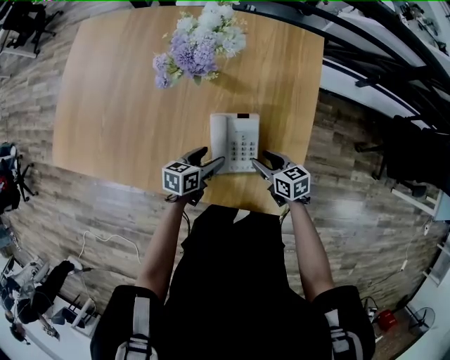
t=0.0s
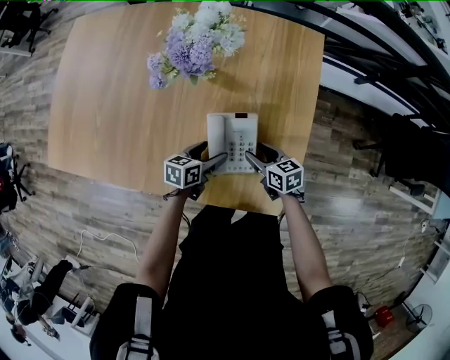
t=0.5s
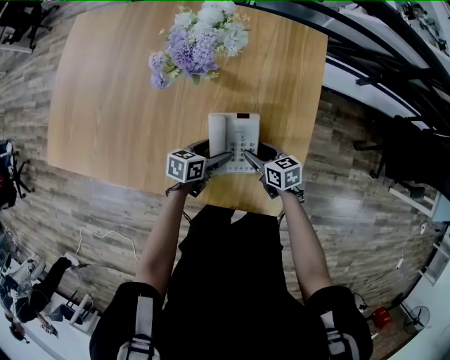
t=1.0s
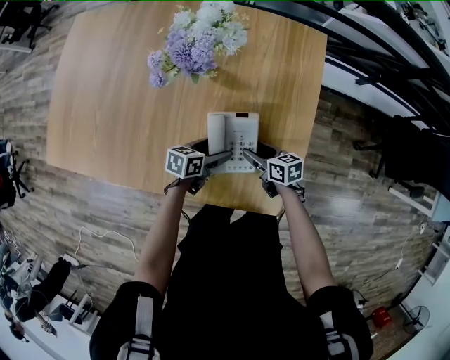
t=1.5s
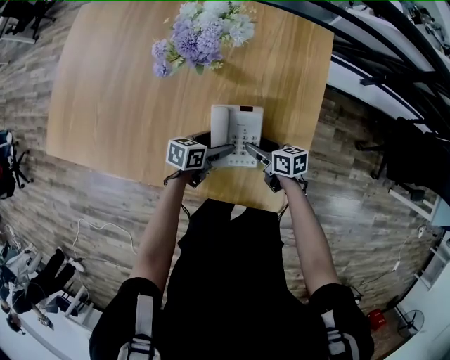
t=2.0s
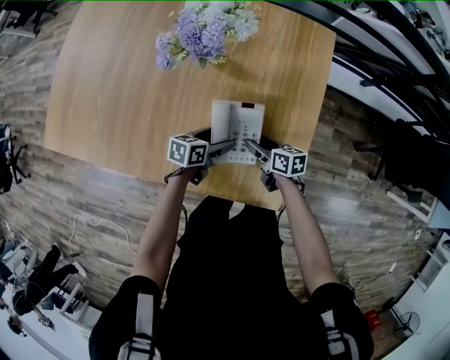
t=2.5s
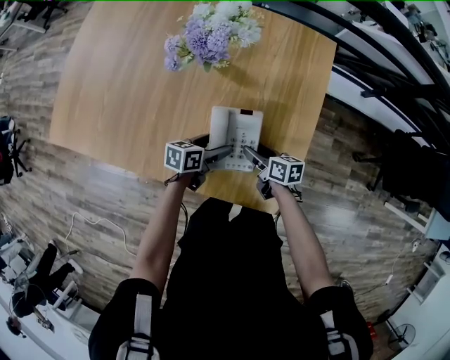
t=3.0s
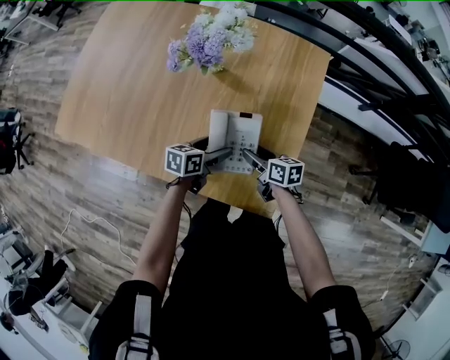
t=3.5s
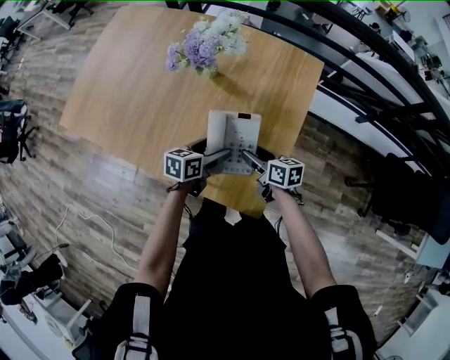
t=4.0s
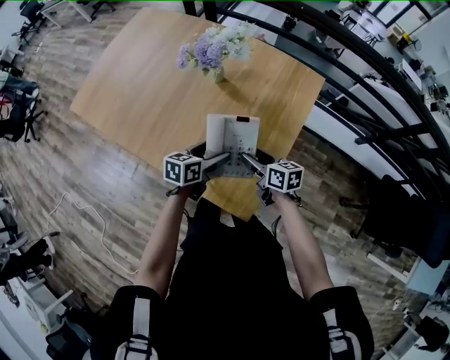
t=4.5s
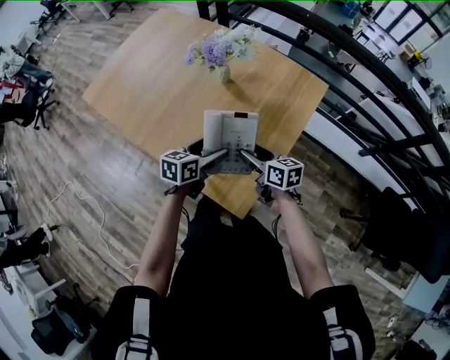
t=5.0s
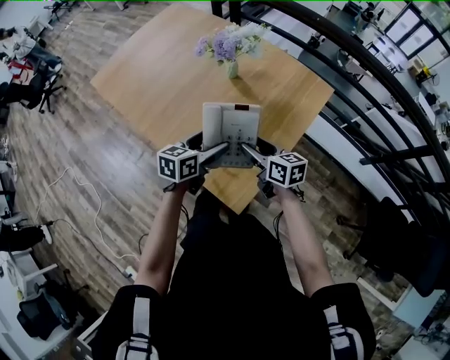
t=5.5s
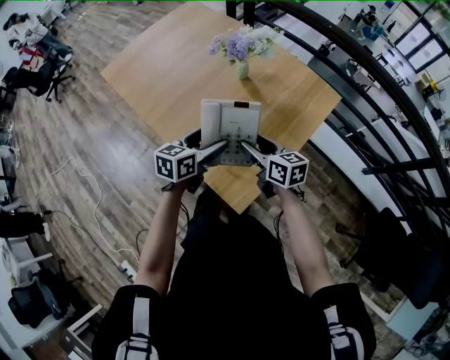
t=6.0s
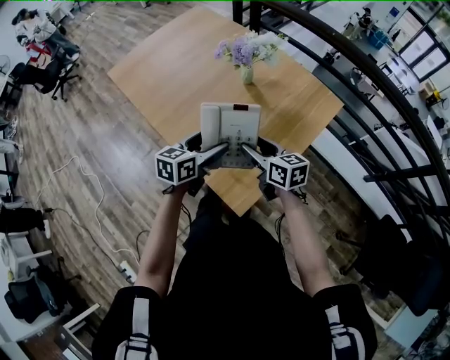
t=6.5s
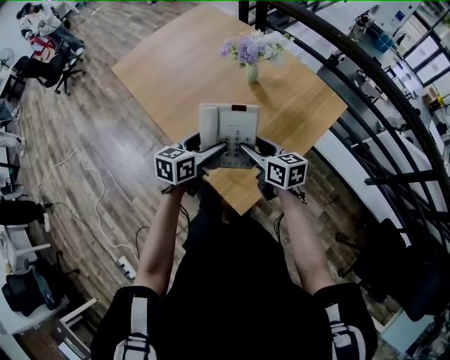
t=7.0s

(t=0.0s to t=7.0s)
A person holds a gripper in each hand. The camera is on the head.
t=0.0s - t=2.0s: The left gripper moves approximately 5 cm. Meanwhile the right gripper shifts by some 5 cm.
t=2.0s - t=3.5s: The two grippers go approximately 5 cm upward.
t=3.5s - t=5.0s: The right gripper heads upward, covering some 10 cm, and swivels approximately 20 degrees. The left gripper goes roughly 15 cm upward and backward, and turns by approximately 20 degrees.
t=5.0s - t=7.0s: The grippers both shift upward by roughly 5 cm.

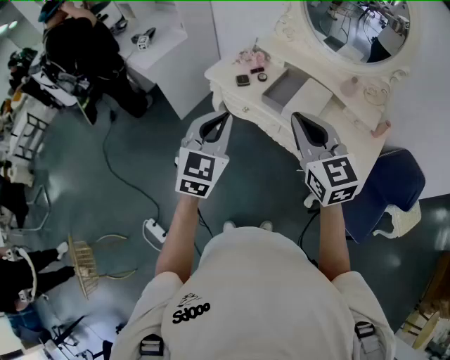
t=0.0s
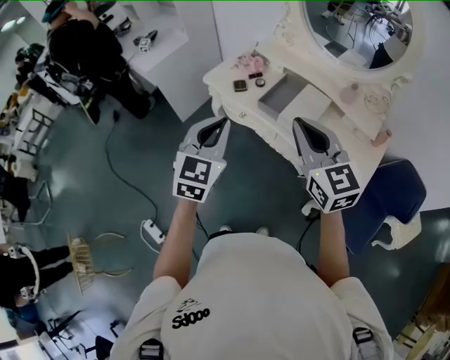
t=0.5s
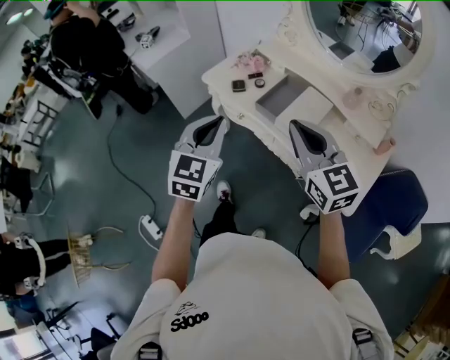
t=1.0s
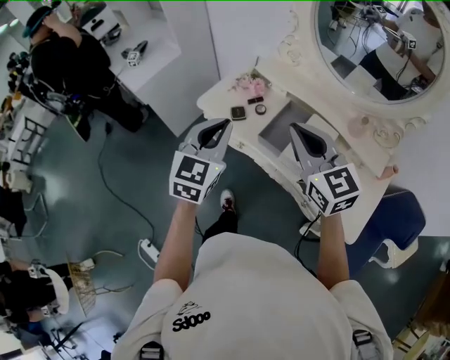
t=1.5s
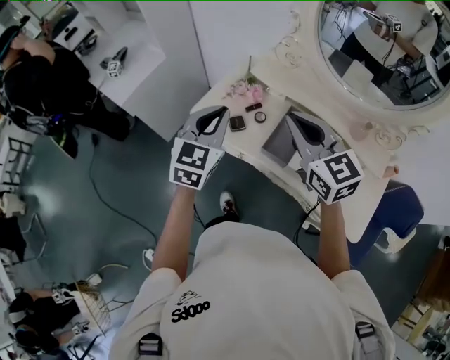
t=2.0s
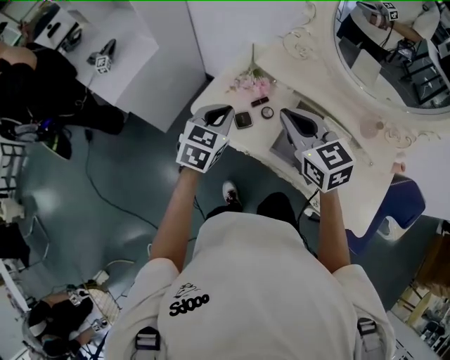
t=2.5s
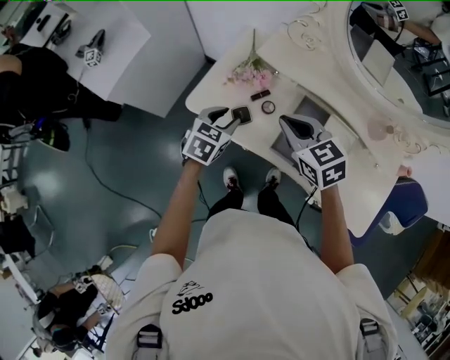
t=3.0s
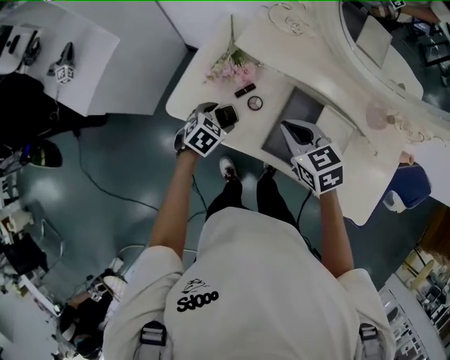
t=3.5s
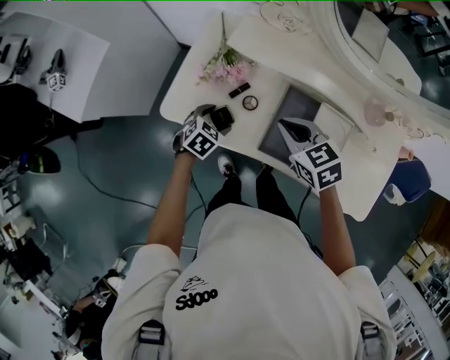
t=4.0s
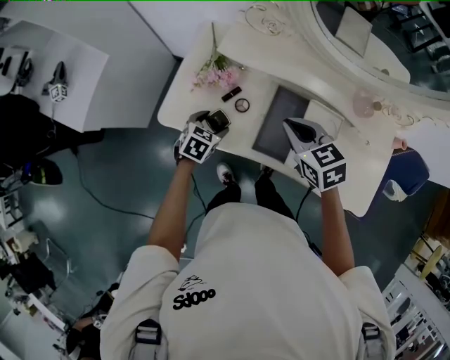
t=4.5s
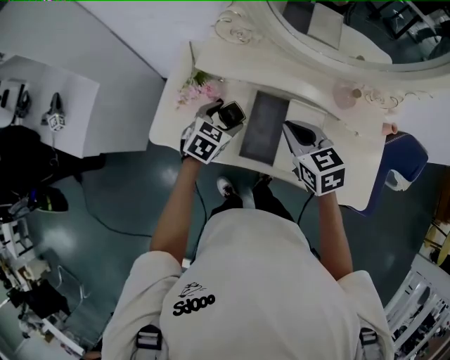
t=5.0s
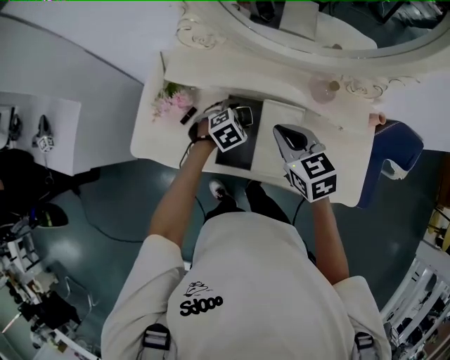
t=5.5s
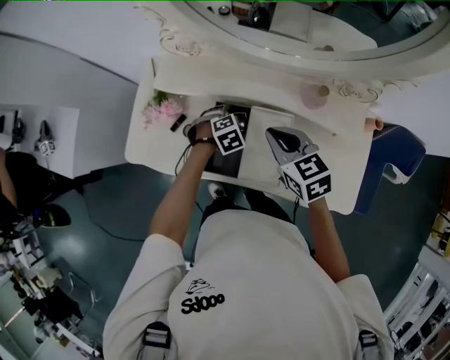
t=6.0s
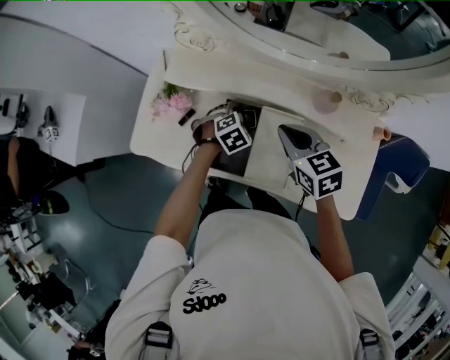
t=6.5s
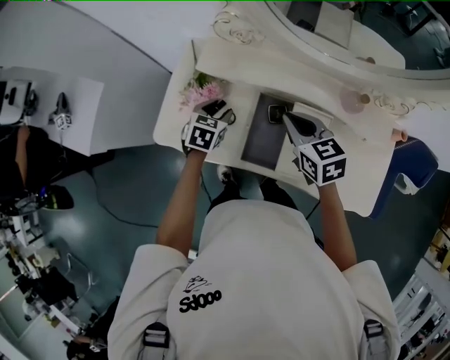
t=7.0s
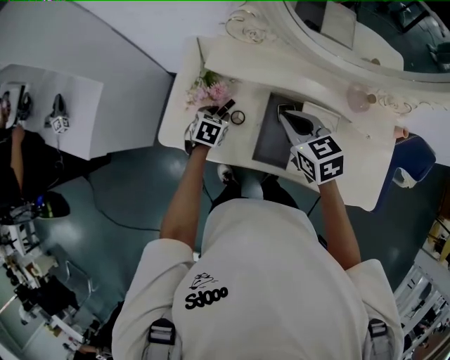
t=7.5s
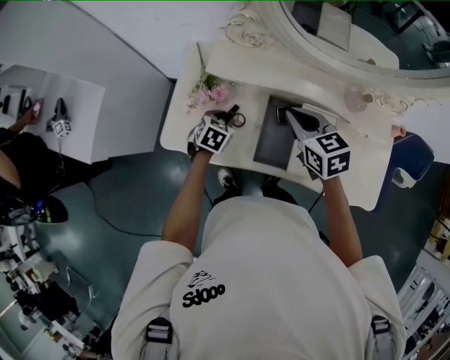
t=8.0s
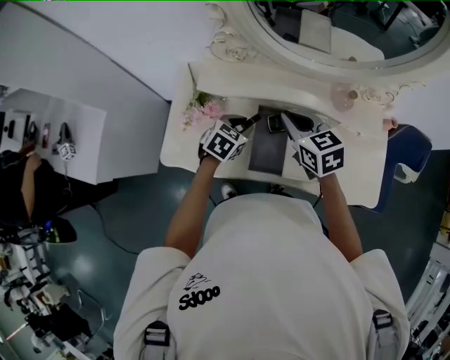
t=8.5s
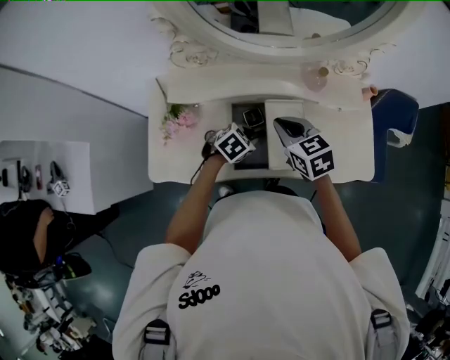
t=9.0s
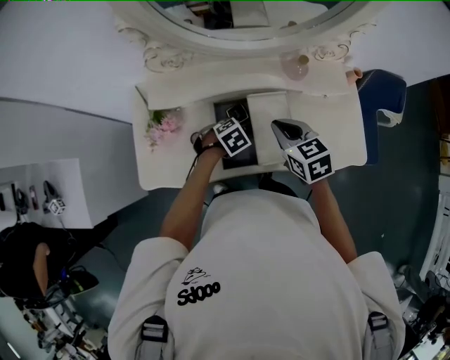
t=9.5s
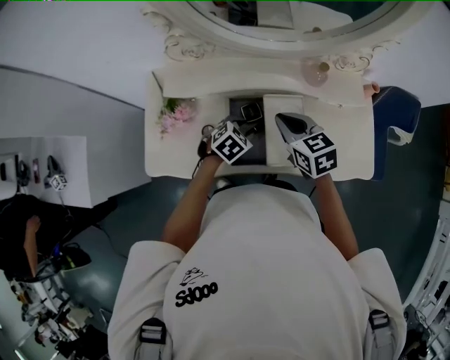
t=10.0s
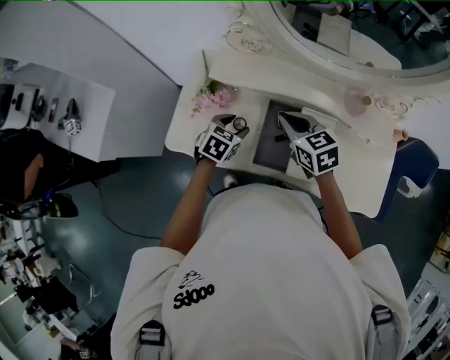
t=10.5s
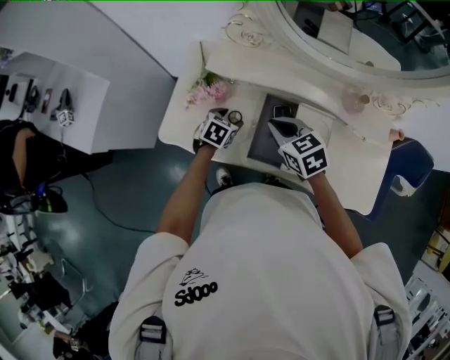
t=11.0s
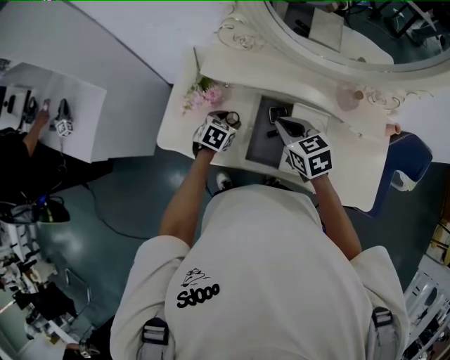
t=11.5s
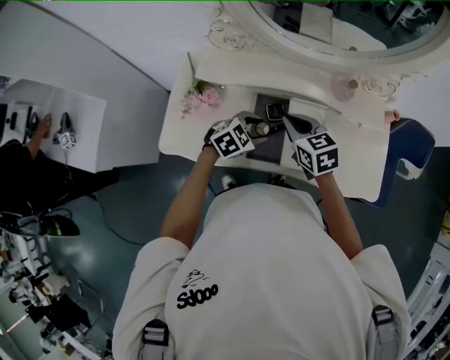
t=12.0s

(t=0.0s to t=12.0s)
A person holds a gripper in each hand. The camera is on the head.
t=0.0s - t=2.0s: Both grippers travel together forward, about 30 cm.
t=2.0s - t=4.0s: The left gripper heads downward, covering roughly 35 cm, points its fingers roughly 40 degrees further downward, and opens up. The right gripper moves downward and forward, some 25 cm, and angles its fingers downward, by approximately 30 degrees.
t=4.0s - t=6.0s: Both grippers move to the right, approximately 20 cm. The left gripper changes its angle by some 40 degrees.
t=6.0s - t=8.0s: The right gripper goes roughly 10 cm to the left, while the left gripper heads to the left, covering some 20 cm, changes its angle by some 40 degrees, and closes its fingers.
t=8.0s - t=10.0s: The left gripper moves up and down over roughly 10 cm, changing direction 2 times, and rotates approximately 30 degrees, while the right gripper changes place by about 10 cm.
t=10.0s - t=12.0s: The left gripper moves approximately 15 cm to the left and comes back.

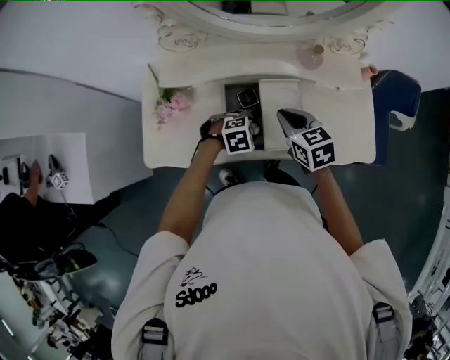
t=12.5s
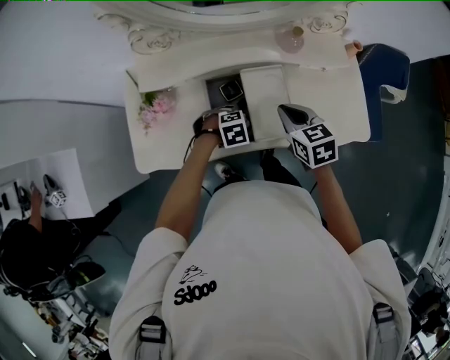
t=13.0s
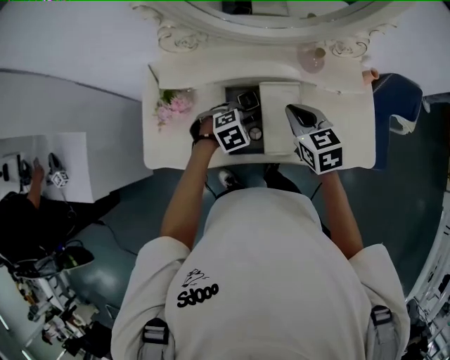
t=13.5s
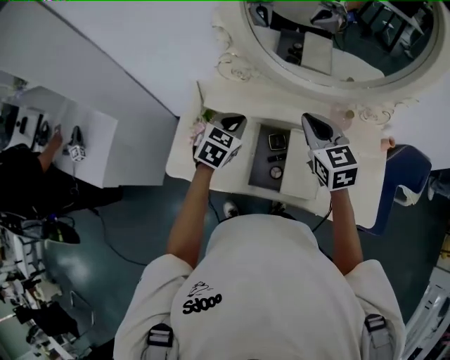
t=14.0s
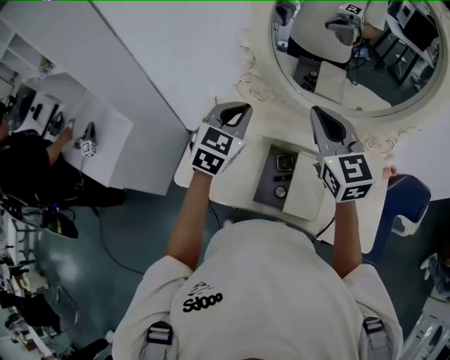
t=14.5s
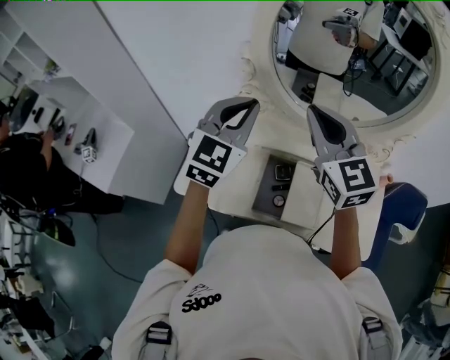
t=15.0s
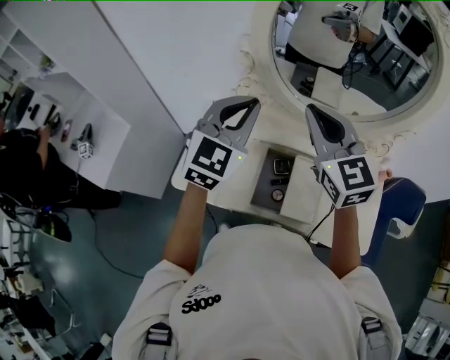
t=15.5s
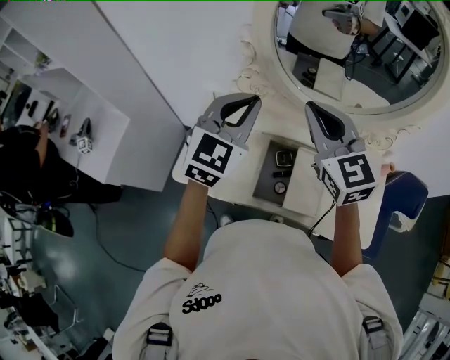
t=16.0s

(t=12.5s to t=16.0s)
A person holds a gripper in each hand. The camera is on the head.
t=12.5s - t=14.5s: Both grippers move upward, approximately 30 cm. The left gripper angles its fingers upward, by about 50 degrees, and closes its fingers; the right gripper points its fingers approximately 30 degrees further upward.
t=14.5s - t=16.0s: The left gripper goes approximately 5 cm upward.

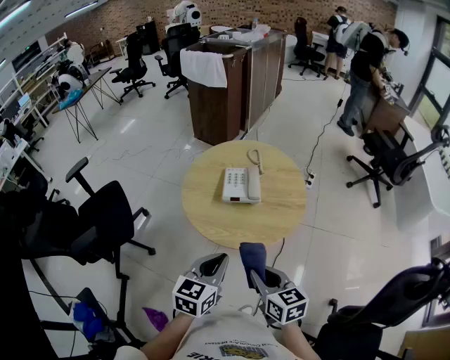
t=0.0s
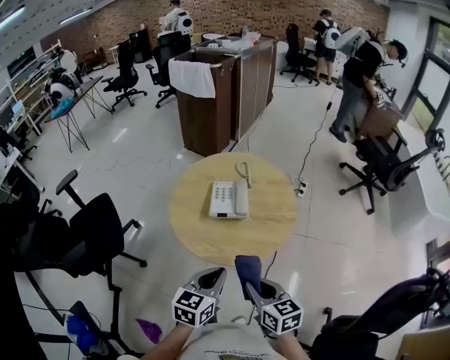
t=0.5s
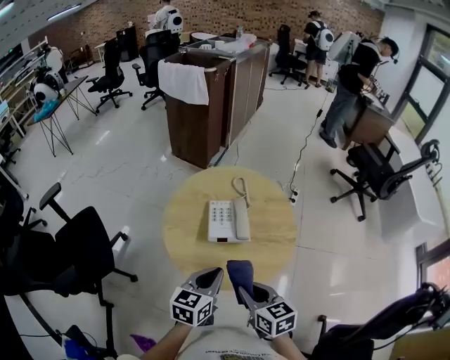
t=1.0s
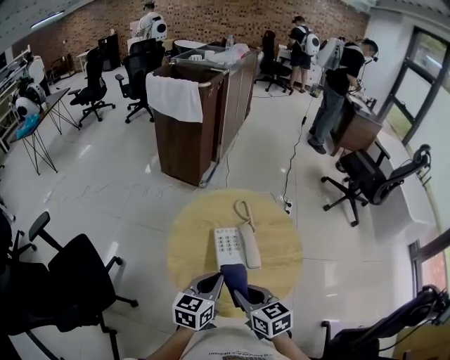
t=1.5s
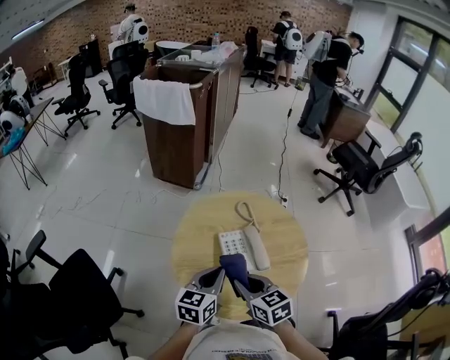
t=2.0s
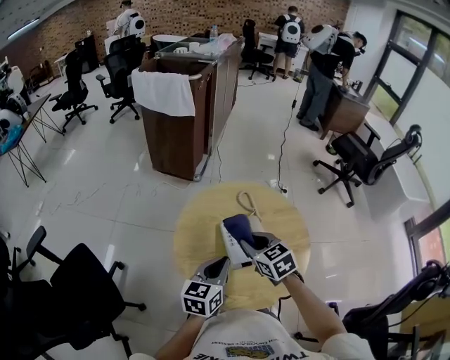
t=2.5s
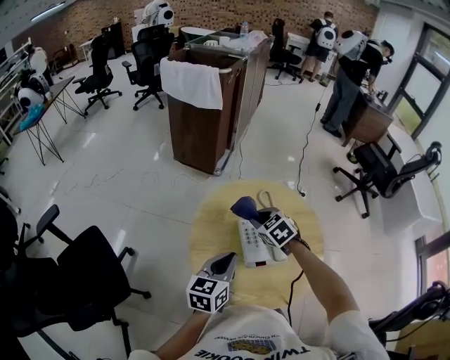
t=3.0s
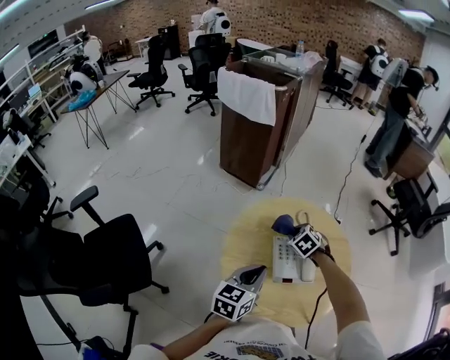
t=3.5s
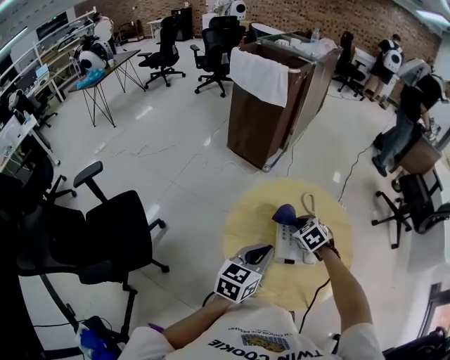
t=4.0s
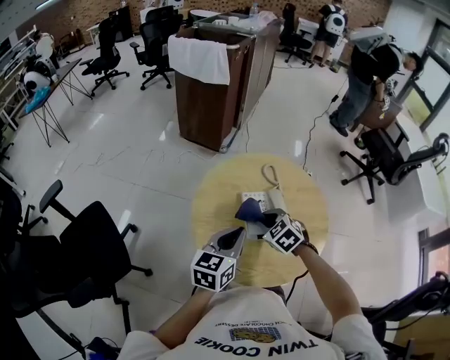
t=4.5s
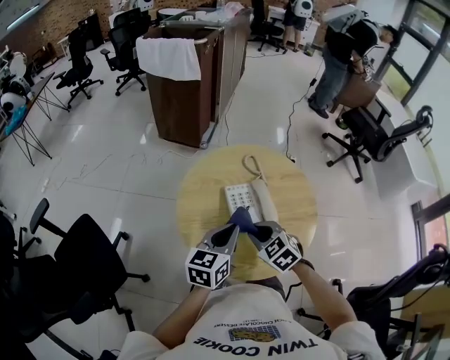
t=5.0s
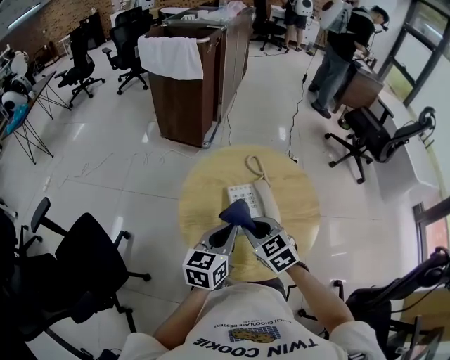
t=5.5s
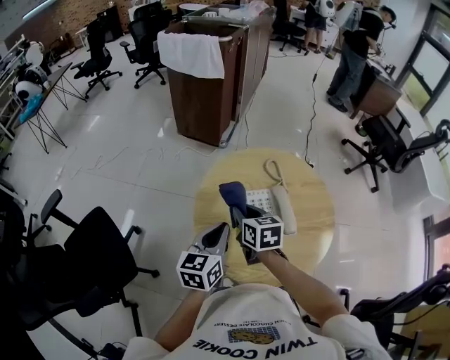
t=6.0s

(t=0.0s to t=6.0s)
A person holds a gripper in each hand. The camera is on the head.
t=0.0s - t=2.0s: The right gripper is displaced forward and to the left by approximately 25 cm. Meanwhile the left gripper moves forward, some 25 cm.
t=2.0s - t=4.0s: The right gripper goes about 20 cm forward and downward, and turns by roughly 50 degrees.
t=4.0s - t=6.0s: The left gripper ends up roughly 5 cm from where it was, while the right gripper shifts some 10 cm to the left and upward, moves roughly 15 cm backward and comes back, and twists approximately 50 degrees clockwise, seen from behind.
